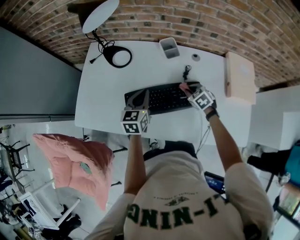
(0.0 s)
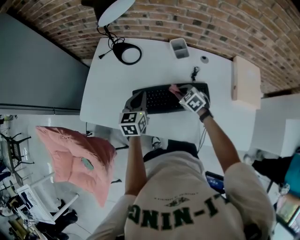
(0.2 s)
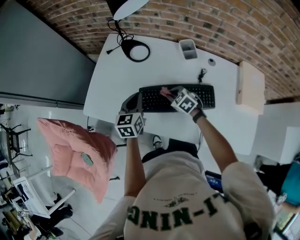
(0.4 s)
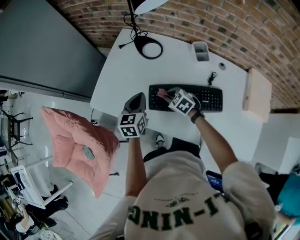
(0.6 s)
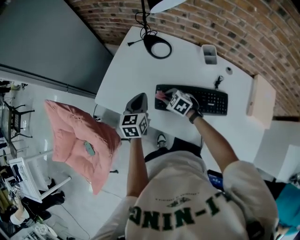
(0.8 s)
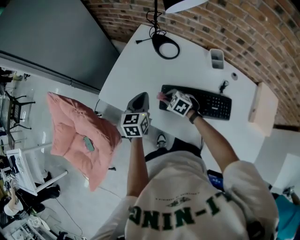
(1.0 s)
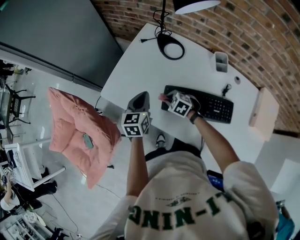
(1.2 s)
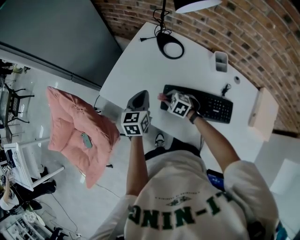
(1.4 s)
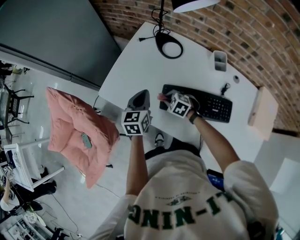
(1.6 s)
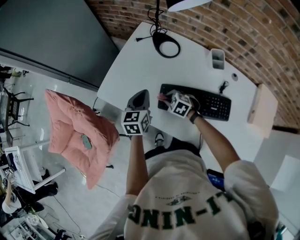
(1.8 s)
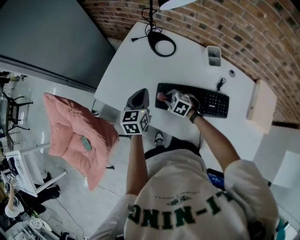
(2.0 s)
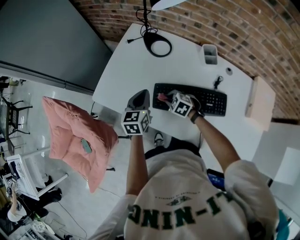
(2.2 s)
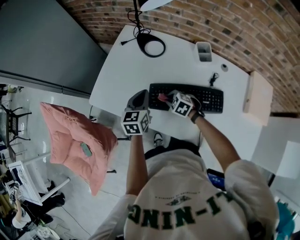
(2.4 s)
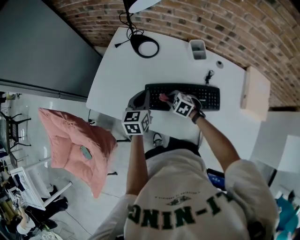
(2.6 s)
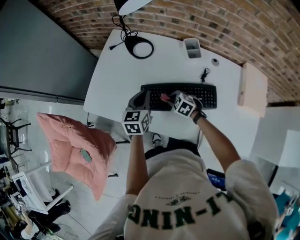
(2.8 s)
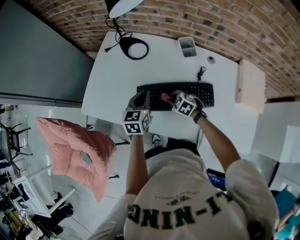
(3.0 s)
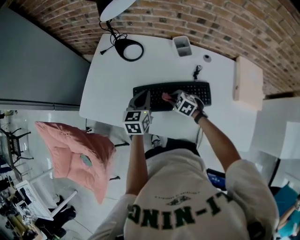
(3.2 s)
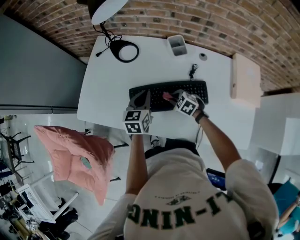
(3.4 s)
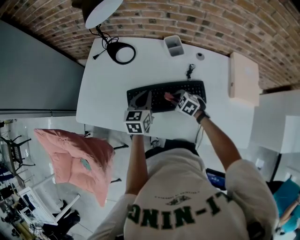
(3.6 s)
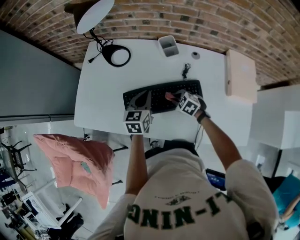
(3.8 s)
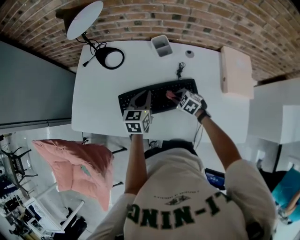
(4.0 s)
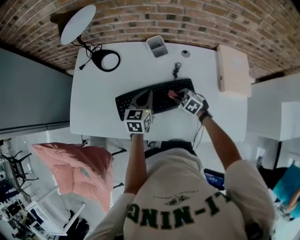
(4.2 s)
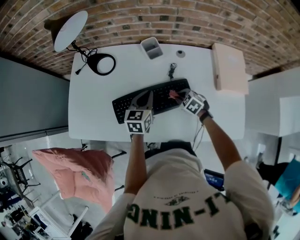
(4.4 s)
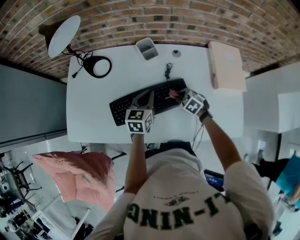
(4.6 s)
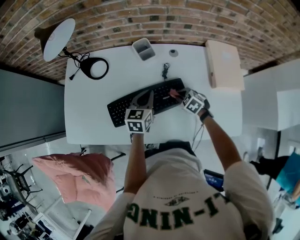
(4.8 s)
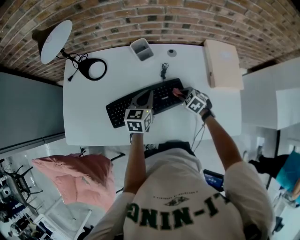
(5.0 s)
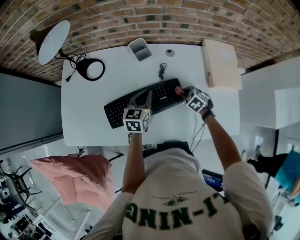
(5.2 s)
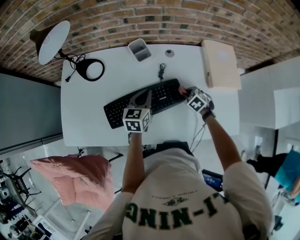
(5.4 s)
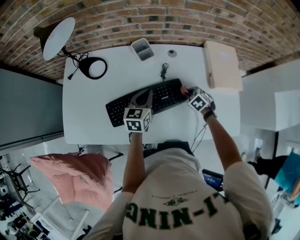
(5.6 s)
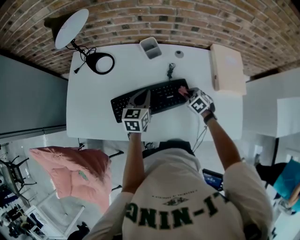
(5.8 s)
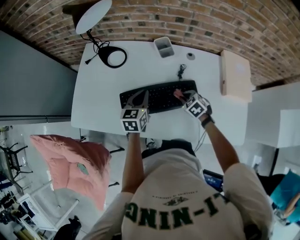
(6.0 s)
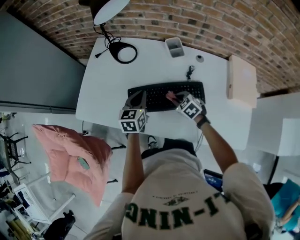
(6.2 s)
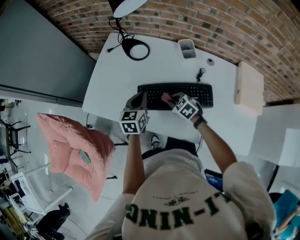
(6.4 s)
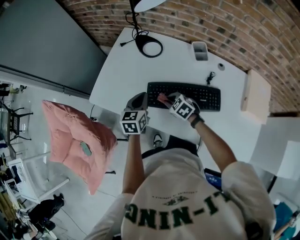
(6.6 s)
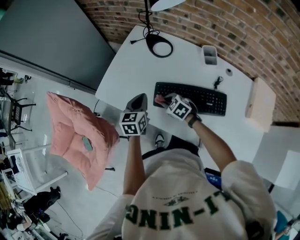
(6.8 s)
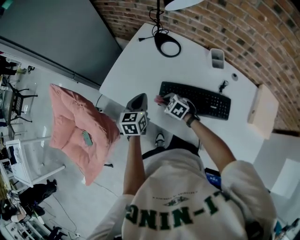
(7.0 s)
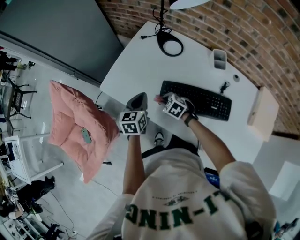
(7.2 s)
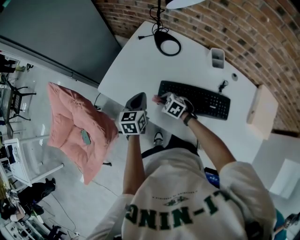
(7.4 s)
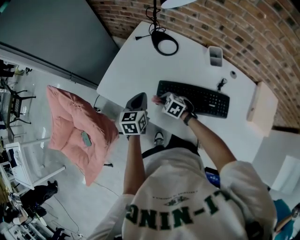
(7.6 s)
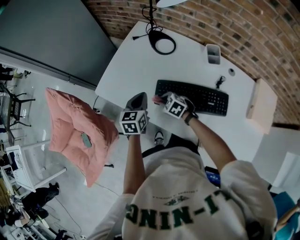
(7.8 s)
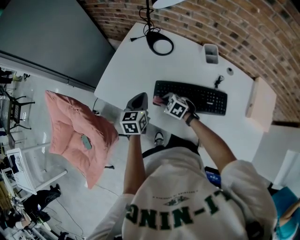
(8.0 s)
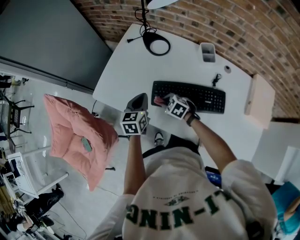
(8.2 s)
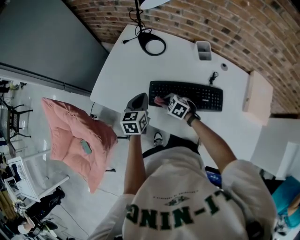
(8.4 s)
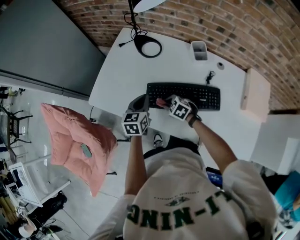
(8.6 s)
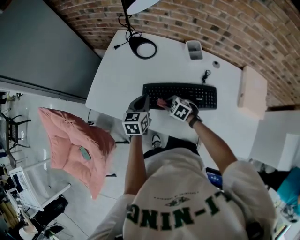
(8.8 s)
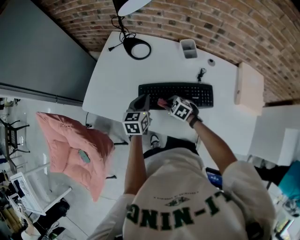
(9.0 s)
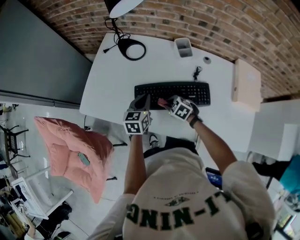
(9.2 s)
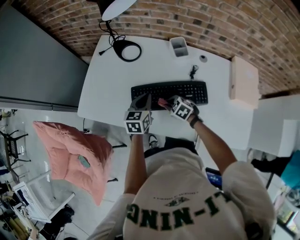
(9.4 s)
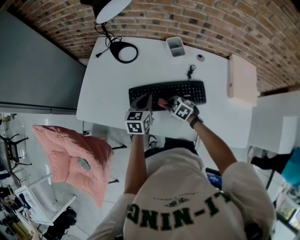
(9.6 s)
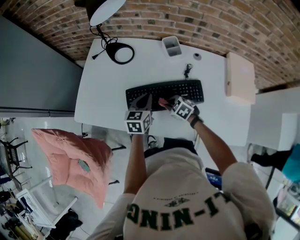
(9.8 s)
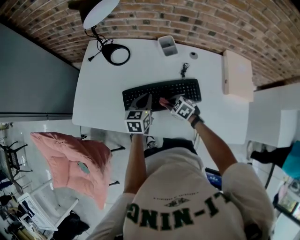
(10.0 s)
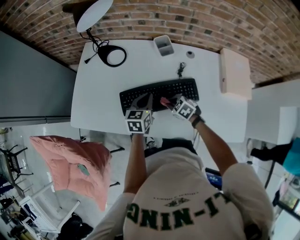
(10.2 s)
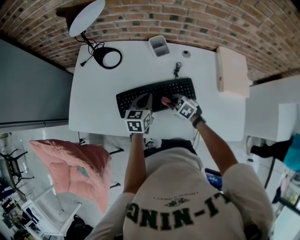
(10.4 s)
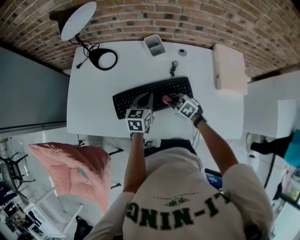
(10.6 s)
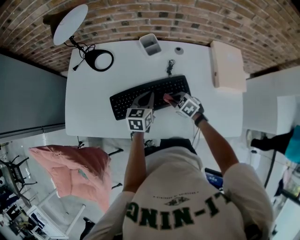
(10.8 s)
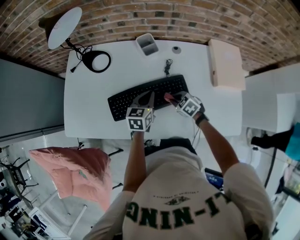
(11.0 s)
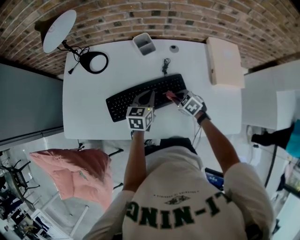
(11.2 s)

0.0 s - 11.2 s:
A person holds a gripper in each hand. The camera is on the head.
0.0 s - 1.6 s: The left gripper changes place by roughly 20 cm, and changes its angle by roughly 20 degrees; the right gripper moves approximately 35 cm, and swivels some 40 degrees.
1.6 s - 3.2 s: The right gripper heads to the right and backward, covering about 15 cm, while the left gripper shifts roughly 15 cm to the right.
3.2 s - 4.8 s: The two grippers go approximately 20 cm to the right. The right gripper rotates roughly 20 degrees.
4.8 s - 6.4 s: The right gripper moves about 20 cm; the left gripper shifts by about 20 cm, and swivels approximately 20 degrees.
6.4 s - 8.0 s: The two grippers go roughly 10 cm to the left. The right gripper turns by about 20 degrees.
8.0 s - 9.6 s: The left gripper goes some 15 cm to the right, while the right gripper goes about 15 cm to the right and backward.
9.6 s - 11.2 s: The two grippers go about 15 cm to the right.

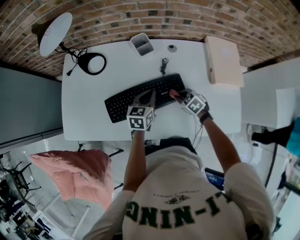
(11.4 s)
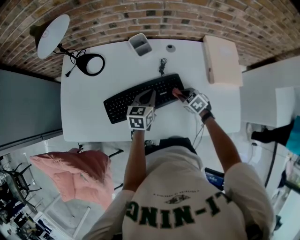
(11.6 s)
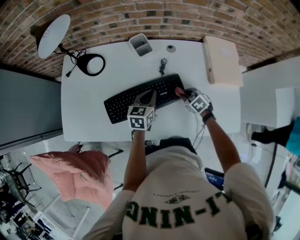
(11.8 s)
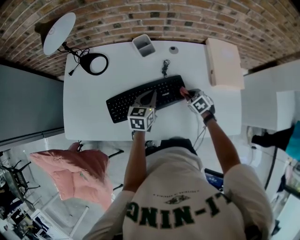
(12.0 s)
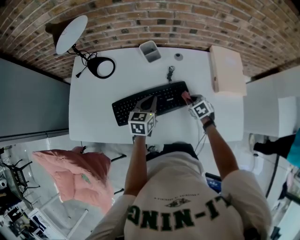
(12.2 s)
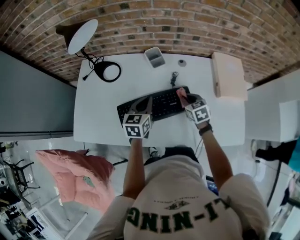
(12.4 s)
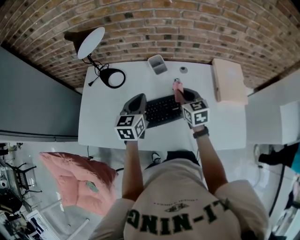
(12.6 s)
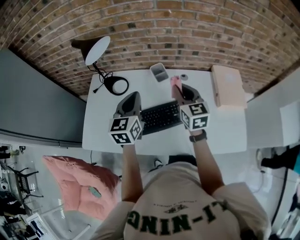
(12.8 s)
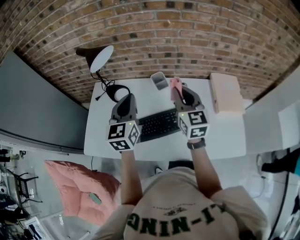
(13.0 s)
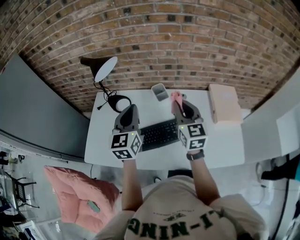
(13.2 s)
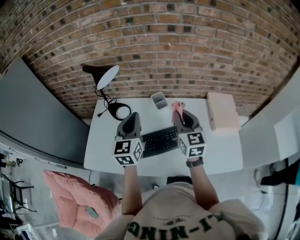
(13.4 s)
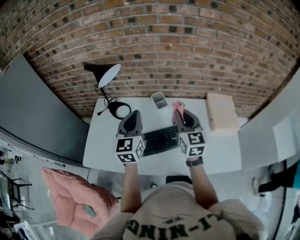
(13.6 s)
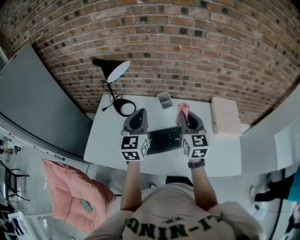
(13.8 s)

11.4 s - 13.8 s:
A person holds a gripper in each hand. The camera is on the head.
11.4 s - 12.6 s: The right gripper heads upward, covering roughly 20 cm, and tilts its fingers approximately 40 degrees upward. The left gripper moves upward and to the left, approximately 20 cm.
12.6 s - 13.8 s: Both grippers move upward, about 15 cm. The right gripper changes its angle by roughly 20 degrees. The left gripper changes its angle by approximately 20 degrees.

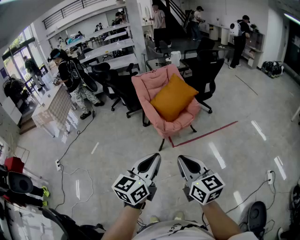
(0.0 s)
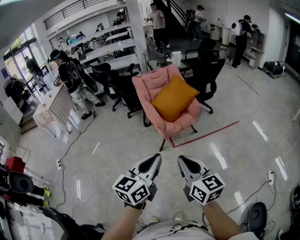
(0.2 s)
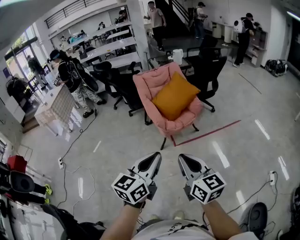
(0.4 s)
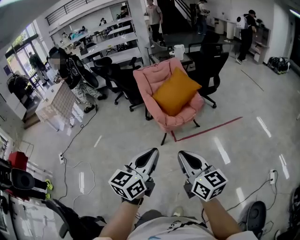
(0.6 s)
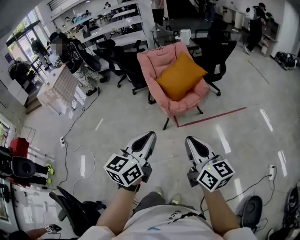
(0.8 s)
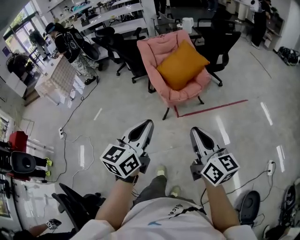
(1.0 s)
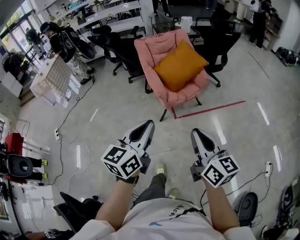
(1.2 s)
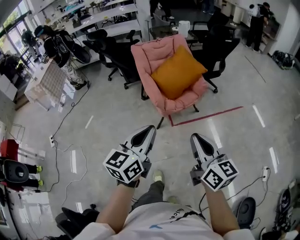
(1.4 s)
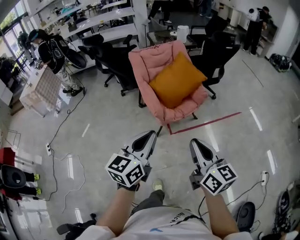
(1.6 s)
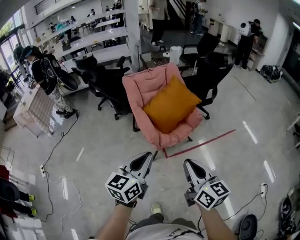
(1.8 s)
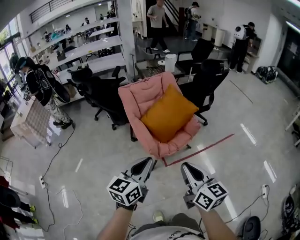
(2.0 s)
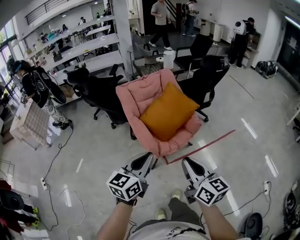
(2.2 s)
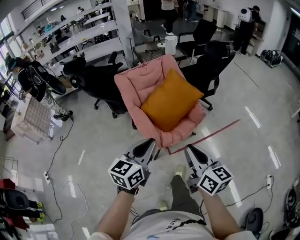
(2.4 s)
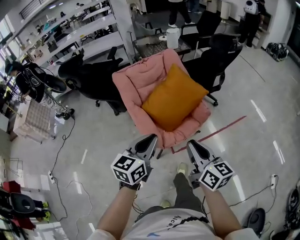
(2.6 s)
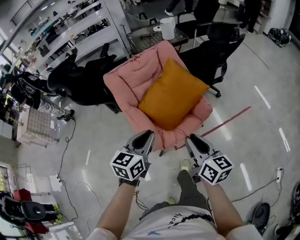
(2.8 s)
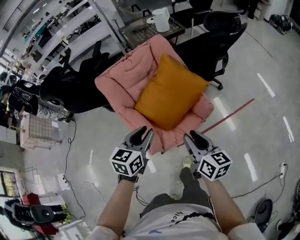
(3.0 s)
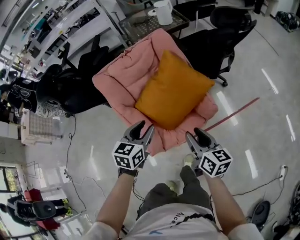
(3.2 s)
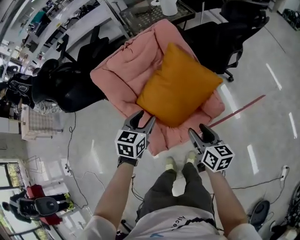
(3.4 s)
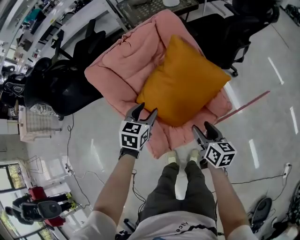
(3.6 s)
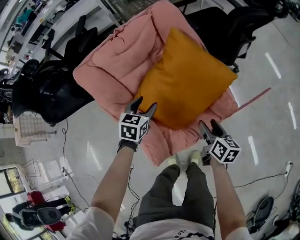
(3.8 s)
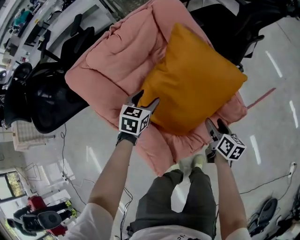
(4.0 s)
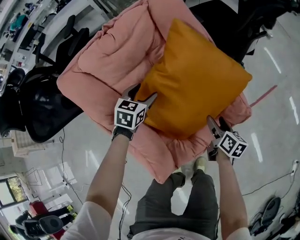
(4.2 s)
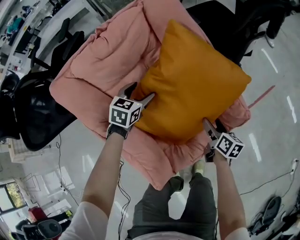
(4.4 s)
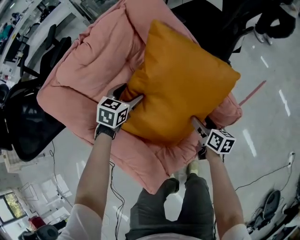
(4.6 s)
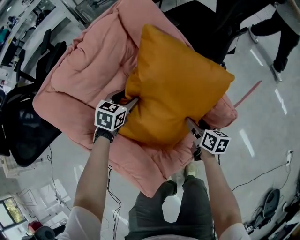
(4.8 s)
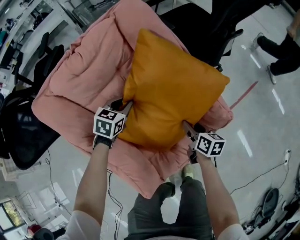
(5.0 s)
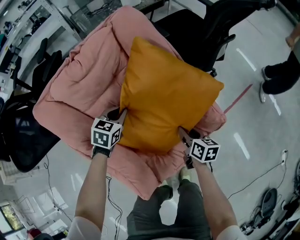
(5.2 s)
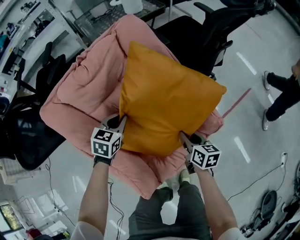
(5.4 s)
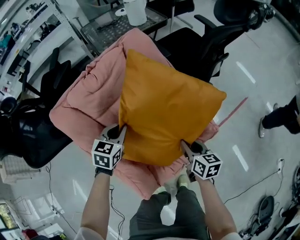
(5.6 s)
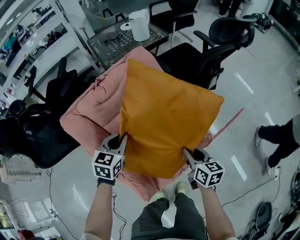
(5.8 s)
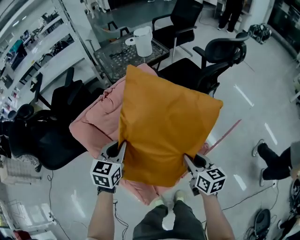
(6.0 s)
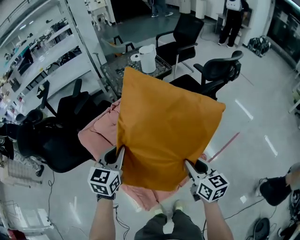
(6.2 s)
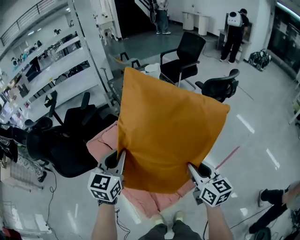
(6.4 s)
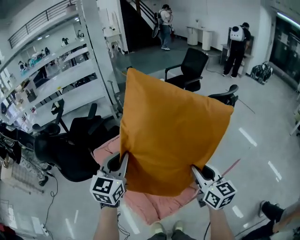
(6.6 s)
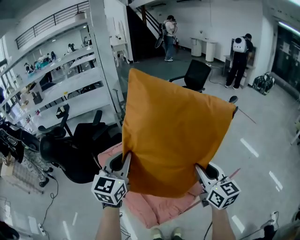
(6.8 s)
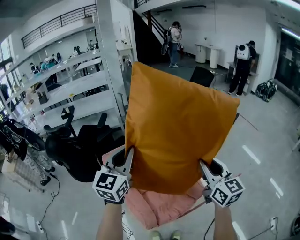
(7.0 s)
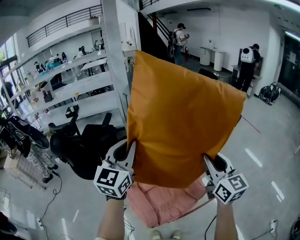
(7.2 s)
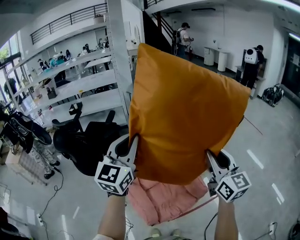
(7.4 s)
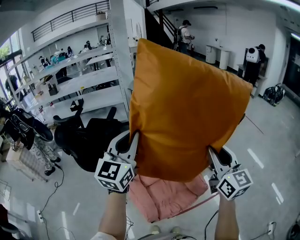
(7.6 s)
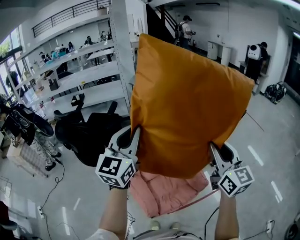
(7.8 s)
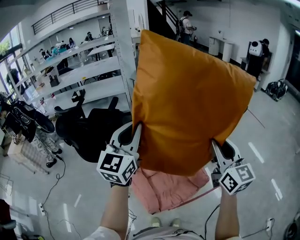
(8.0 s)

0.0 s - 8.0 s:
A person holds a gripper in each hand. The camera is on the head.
0.0 s - 1.6 s: Both grippers move forward, approximately 25 cm.
1.6 s - 3.2 s: The pair of grippers is taken forward, about 50 cm. The left gripper rotates some 30 degrees, and opens. The right gripper goes about 20 cm downward, swivels about 20 degrees, and opens up.
3.2 s - 4.8 s: Both grippers travel together downward and forward, some 50 cm. The left gripper rotates approximately 30 degrees. The right gripper swivels about 20 degrees, and opens up.
4.8 s - 6.4 s: The two grippers go about 50 cm upward. The left gripper points its fingers about 30 degrees further upward, and closes up. Meanwhile the right gripper rotates approximately 40 degrees, and closes its fingers.
6.4 s - 8.0 s: Both grippers move upward, some 25 cm. The right gripper swivels approximately 30 degrees. Meanwhile the left gripper turns by roughly 20 degrees.

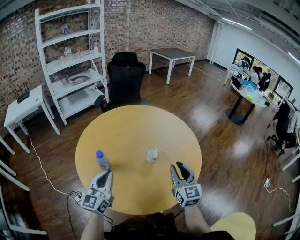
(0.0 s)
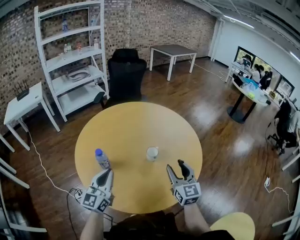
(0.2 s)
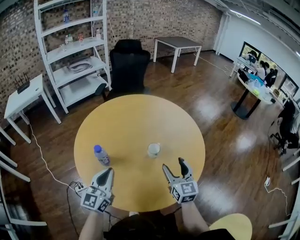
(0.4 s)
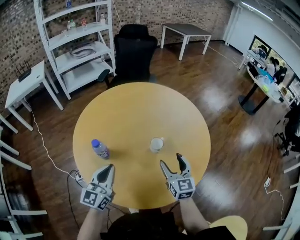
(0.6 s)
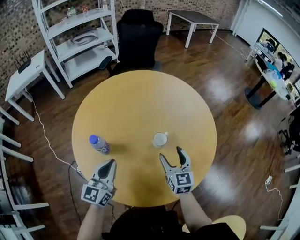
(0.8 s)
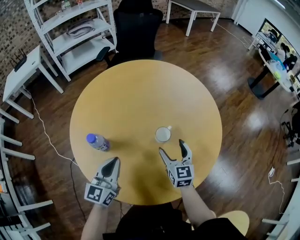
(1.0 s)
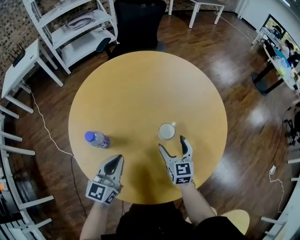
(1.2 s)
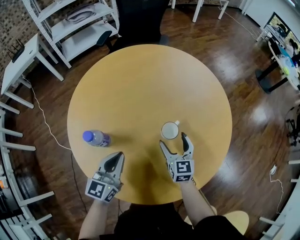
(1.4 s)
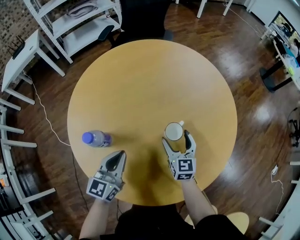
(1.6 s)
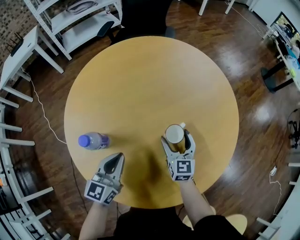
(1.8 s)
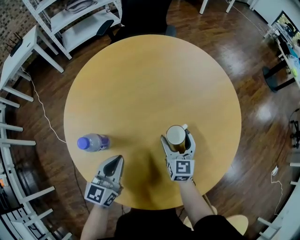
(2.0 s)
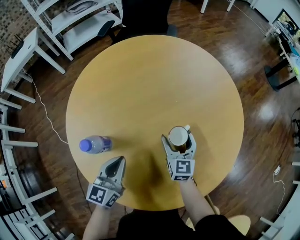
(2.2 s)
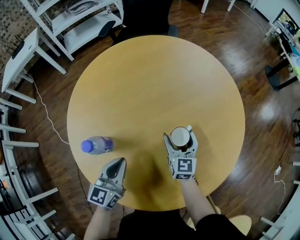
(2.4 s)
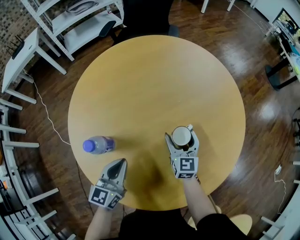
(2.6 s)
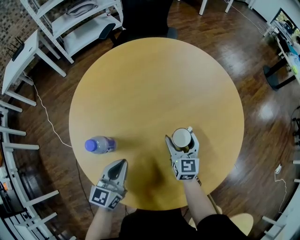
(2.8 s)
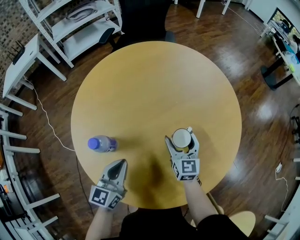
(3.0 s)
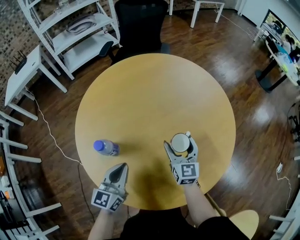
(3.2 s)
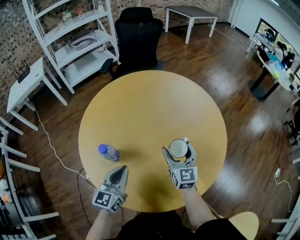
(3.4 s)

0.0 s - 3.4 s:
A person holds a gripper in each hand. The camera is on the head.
0.0 s - 1.6 s: The right gripper moves downward and forward, roughly 25 cm, and opens; the left gripper travels downward and forward by some 15 cm, and swivels some 20 degrees.
1.6 s - 3.4 s: The right gripper is displaced upward by approximately 10 cm.
